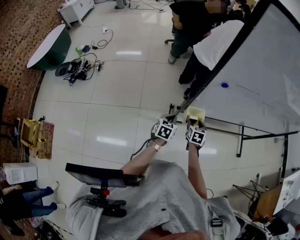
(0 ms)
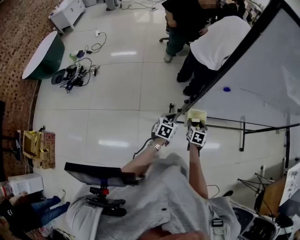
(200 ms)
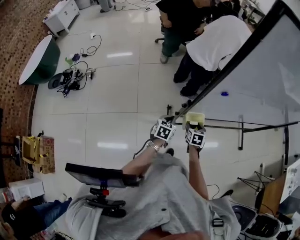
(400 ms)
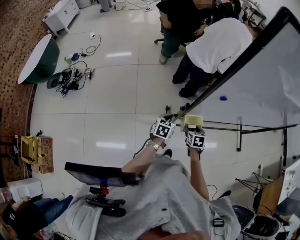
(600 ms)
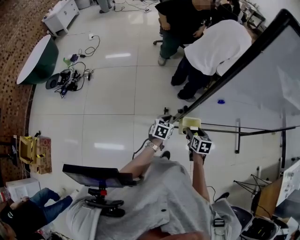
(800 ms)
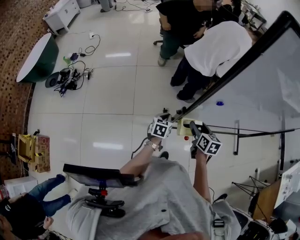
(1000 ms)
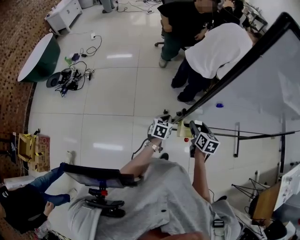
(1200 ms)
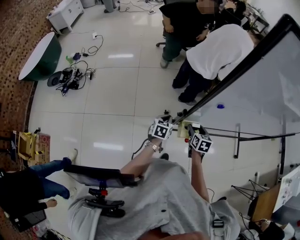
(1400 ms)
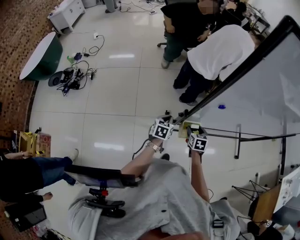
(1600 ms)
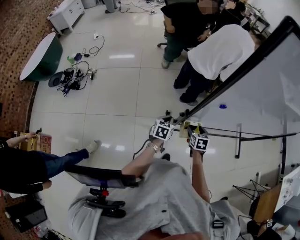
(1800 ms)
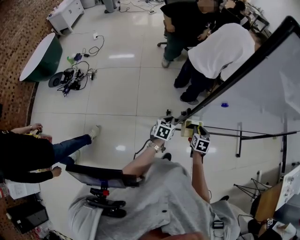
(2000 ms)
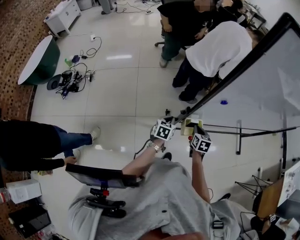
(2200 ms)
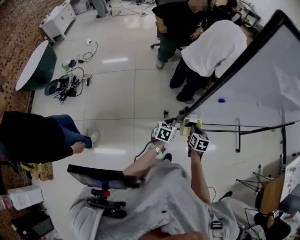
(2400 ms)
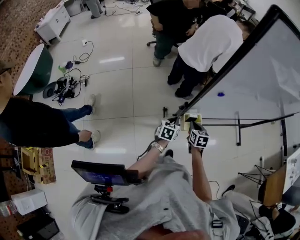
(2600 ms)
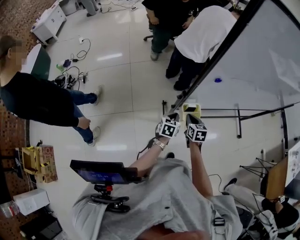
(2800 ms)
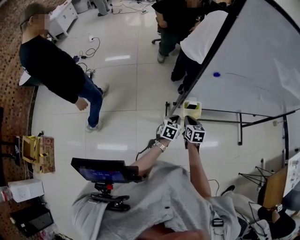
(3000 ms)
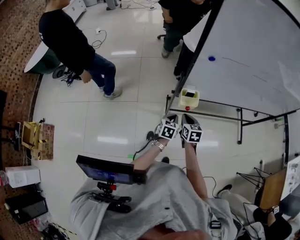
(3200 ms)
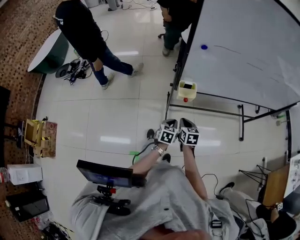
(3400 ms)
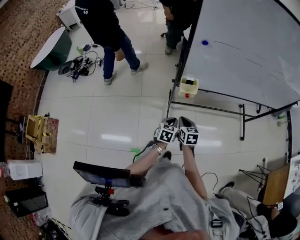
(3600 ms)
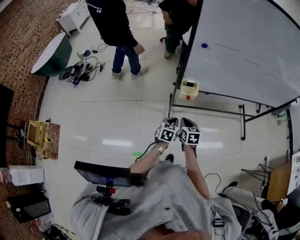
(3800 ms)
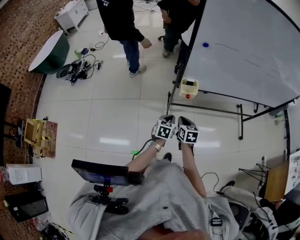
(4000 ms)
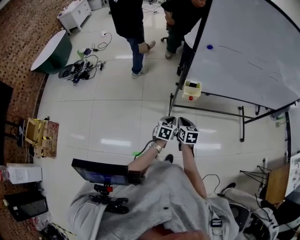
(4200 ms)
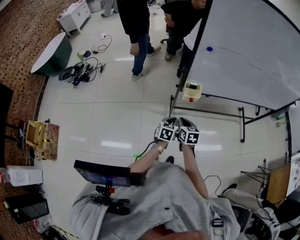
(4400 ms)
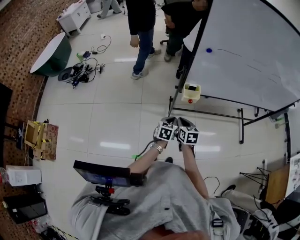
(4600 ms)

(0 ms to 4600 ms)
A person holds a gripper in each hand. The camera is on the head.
0 ms - 1600 ms: The two grippers go some 10 cm forward. The right gripper goes upward and returns, roughly 15 cm each way.
1600 ms - 3000 ms: The left gripper shifts roughly 15 cm backward and to the right. The right gripper is displaced backward by approximately 10 cm, and closes its fingers.
3000 ms - 4600 ms: Both grippers travel together backward, about 15 cm.

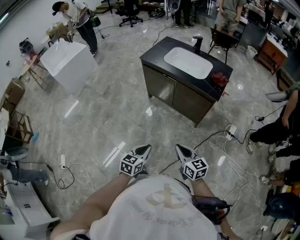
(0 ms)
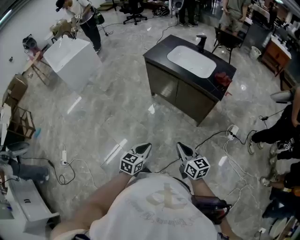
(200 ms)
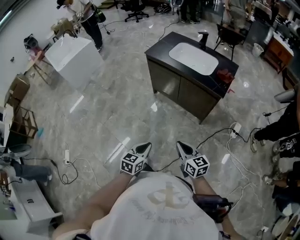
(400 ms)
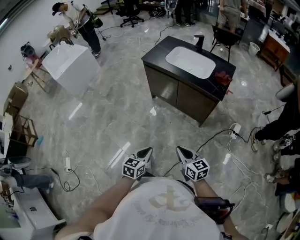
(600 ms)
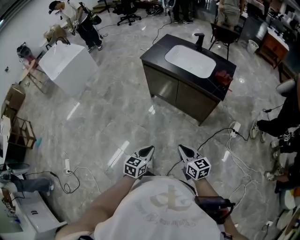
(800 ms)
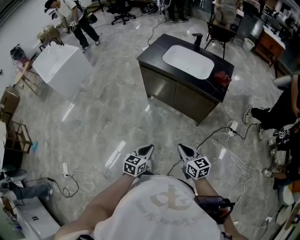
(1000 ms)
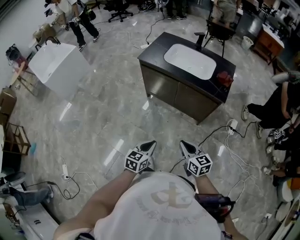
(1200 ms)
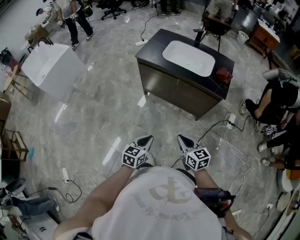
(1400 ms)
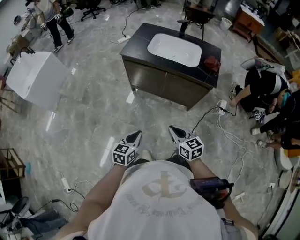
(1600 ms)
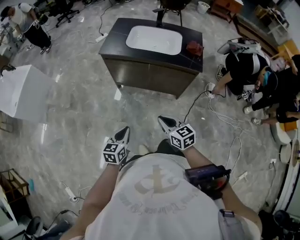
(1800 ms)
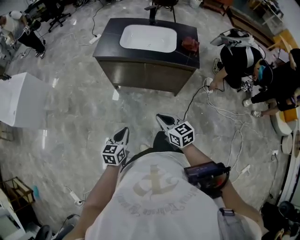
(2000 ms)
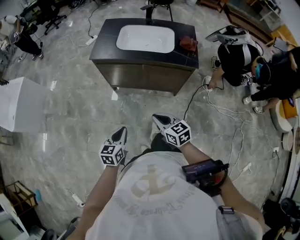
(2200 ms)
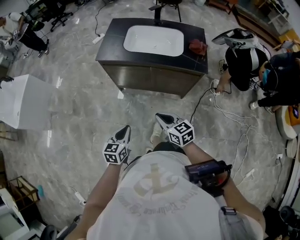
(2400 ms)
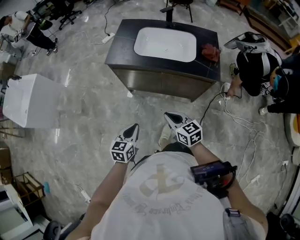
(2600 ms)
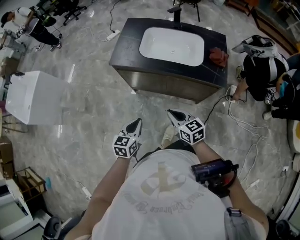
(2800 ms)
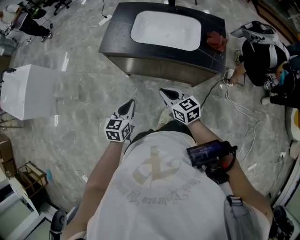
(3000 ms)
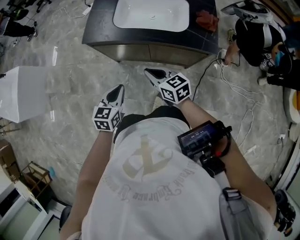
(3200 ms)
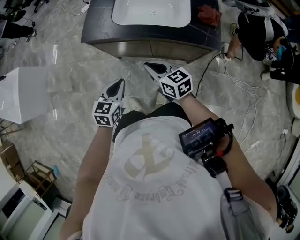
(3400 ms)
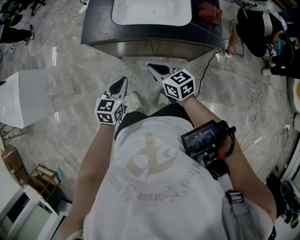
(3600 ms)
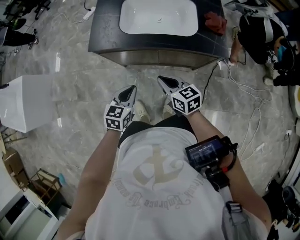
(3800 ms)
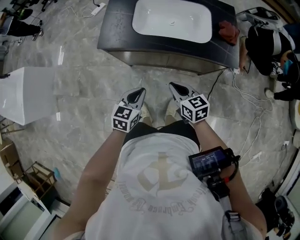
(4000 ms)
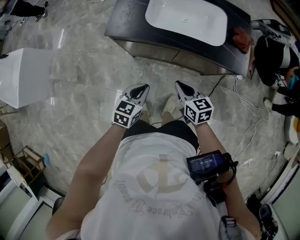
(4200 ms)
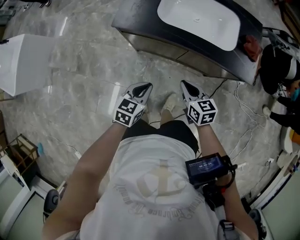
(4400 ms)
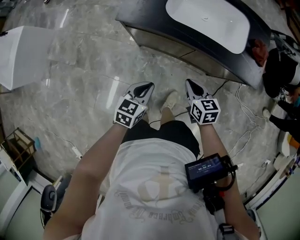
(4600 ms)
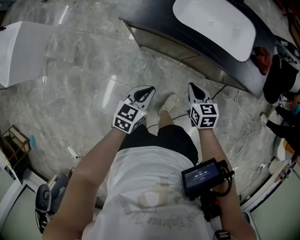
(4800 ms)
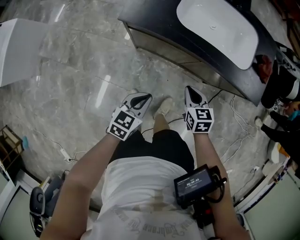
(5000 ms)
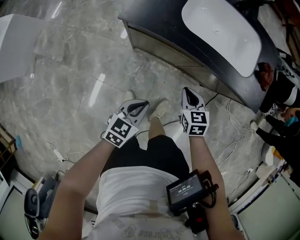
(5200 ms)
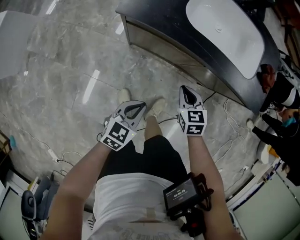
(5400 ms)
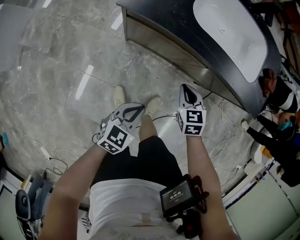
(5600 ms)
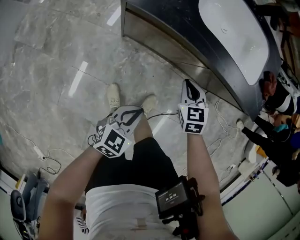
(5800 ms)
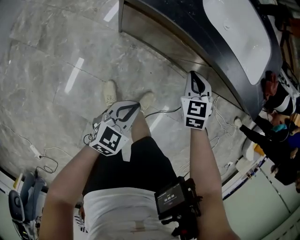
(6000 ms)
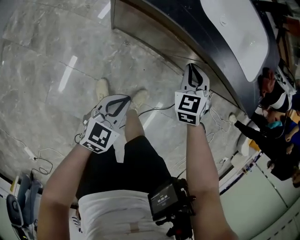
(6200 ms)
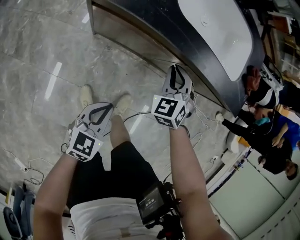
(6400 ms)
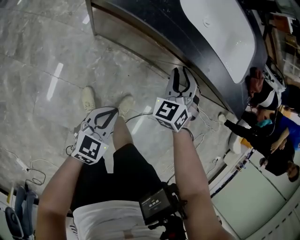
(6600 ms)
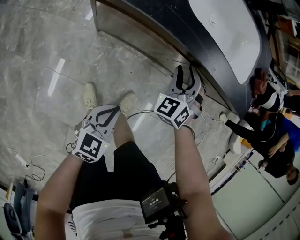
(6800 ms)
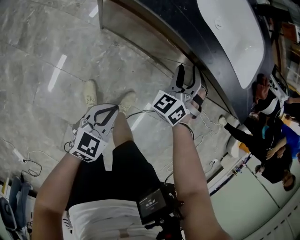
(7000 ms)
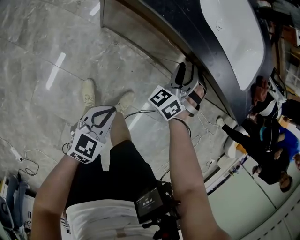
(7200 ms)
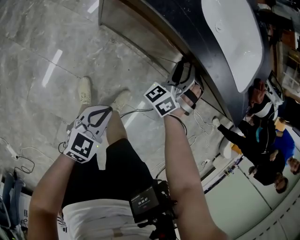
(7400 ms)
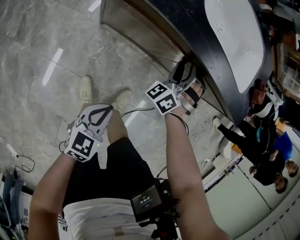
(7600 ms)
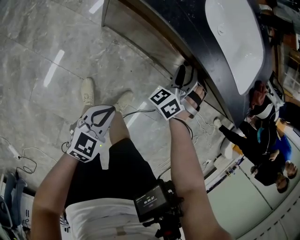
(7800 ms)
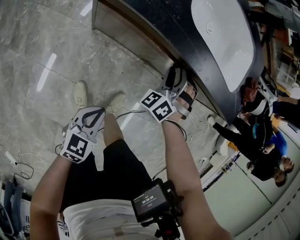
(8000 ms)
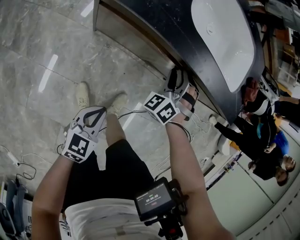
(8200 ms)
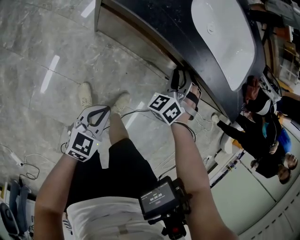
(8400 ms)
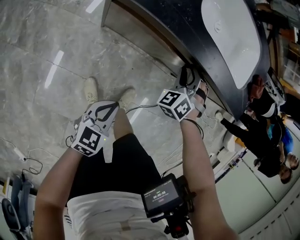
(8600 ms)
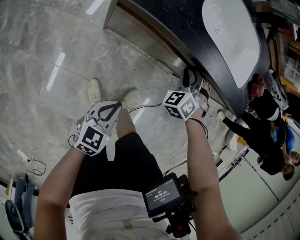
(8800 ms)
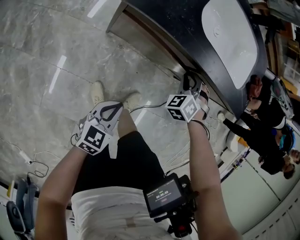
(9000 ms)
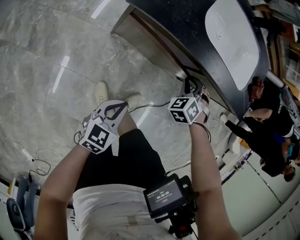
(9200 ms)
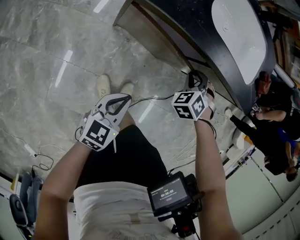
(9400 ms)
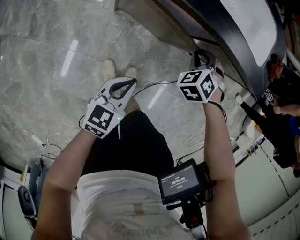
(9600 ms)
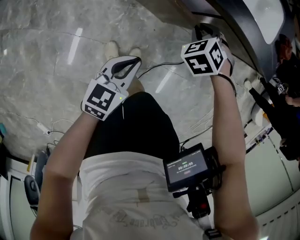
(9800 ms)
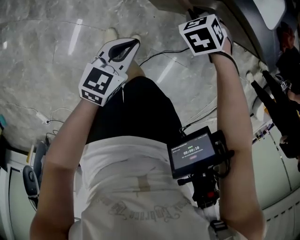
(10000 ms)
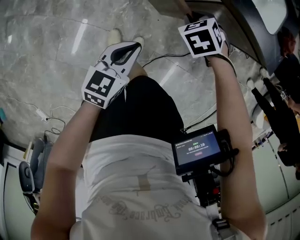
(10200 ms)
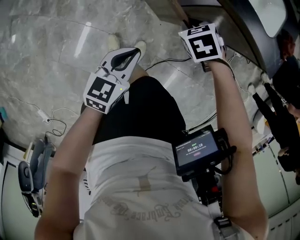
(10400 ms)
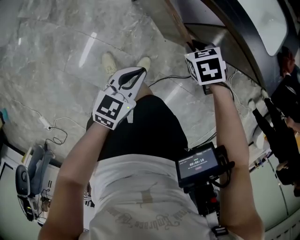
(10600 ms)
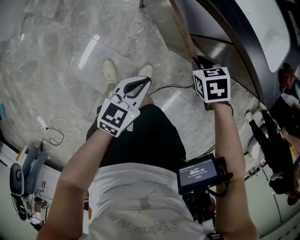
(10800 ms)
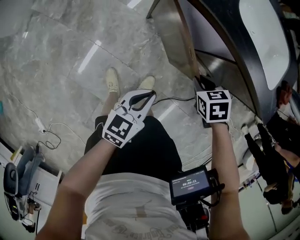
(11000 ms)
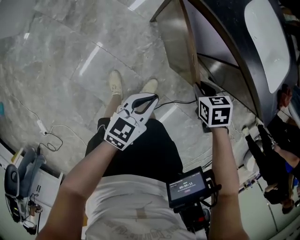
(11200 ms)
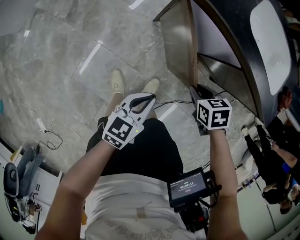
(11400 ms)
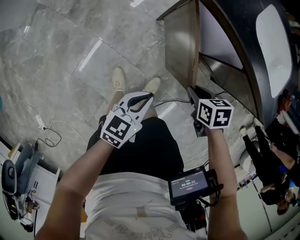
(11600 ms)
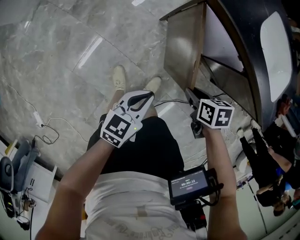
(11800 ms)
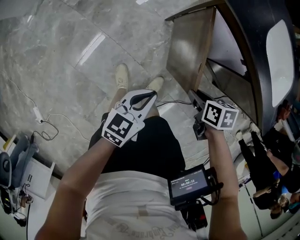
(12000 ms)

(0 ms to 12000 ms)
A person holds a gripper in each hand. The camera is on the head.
0 ms - 1600 ms: The two grippers go roughly 20 cm forward and to the left.
1600 ms - 3000 ms: The two grippers go approximately 25 cm forward.
3000 ms - 4400 ms: The grippers both shift downward and forward by about 10 cm.
4400 ms - 6000 ms: The left gripper travels downward by about 15 cm, while the right gripper moves downward and forward, roughly 20 cm, and changes its angle by approximately 40 degrees.
6000 ms - 7600 ms: The right gripper travels forward by roughly 5 cm, changes its angle by roughly 50 degrees, and opens up.
7600 ms - 9000 ms: The right gripper changes its angle by approximately 30 degrees, and closes, while the left gripper travels to the left by approximately 5 cm.
9000 ms - 10400 ms: The left gripper ends up about 10 cm from where it was; the right gripper ends up approximately 10 cm from where it was, and swivels approximately 40 degrees.
10400 ms - 12000 ms: The left gripper shifts by approximately 10 cm. The right gripper changes place by some 15 cm, and rotates roughly 40 degrees.

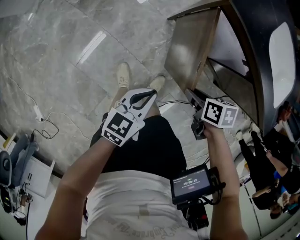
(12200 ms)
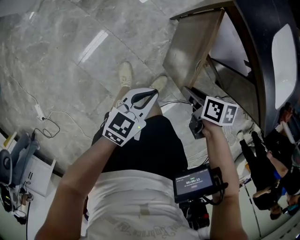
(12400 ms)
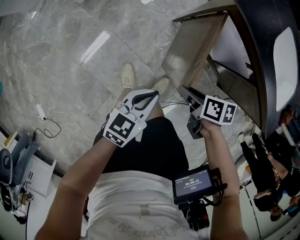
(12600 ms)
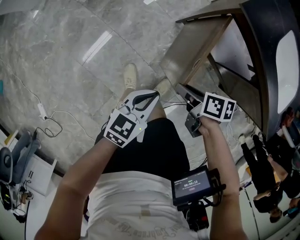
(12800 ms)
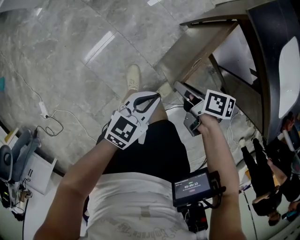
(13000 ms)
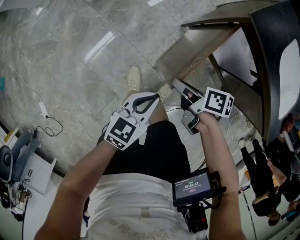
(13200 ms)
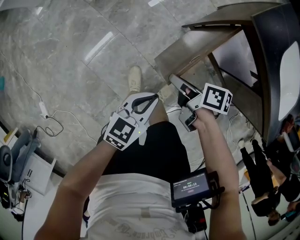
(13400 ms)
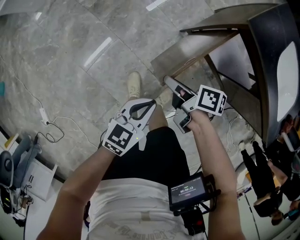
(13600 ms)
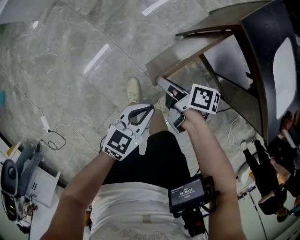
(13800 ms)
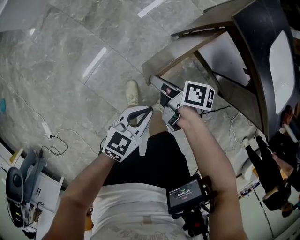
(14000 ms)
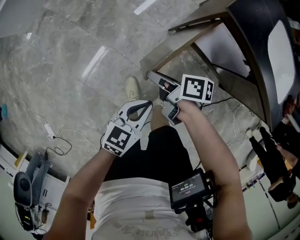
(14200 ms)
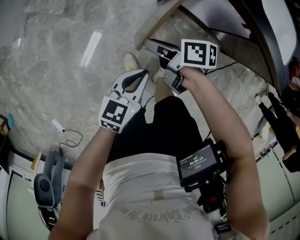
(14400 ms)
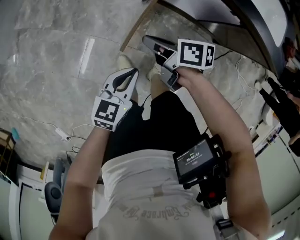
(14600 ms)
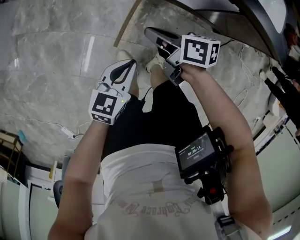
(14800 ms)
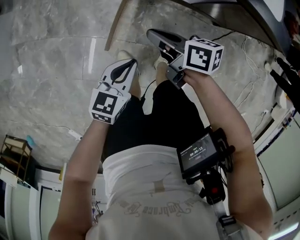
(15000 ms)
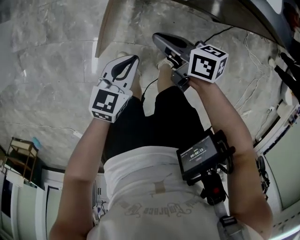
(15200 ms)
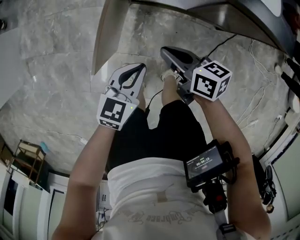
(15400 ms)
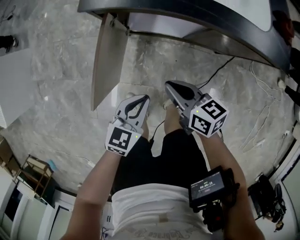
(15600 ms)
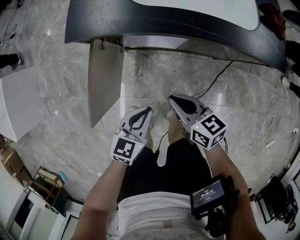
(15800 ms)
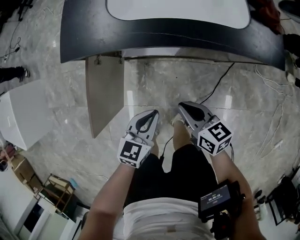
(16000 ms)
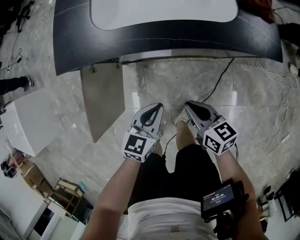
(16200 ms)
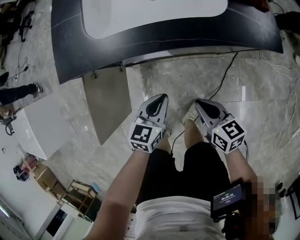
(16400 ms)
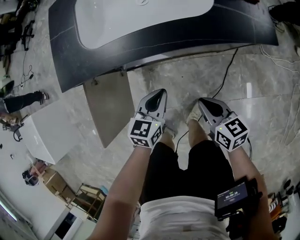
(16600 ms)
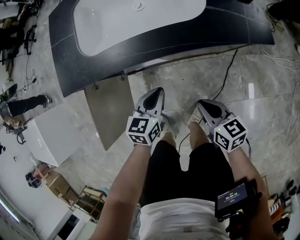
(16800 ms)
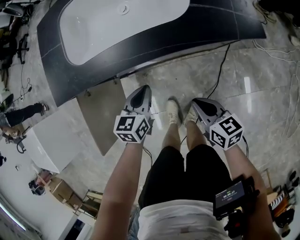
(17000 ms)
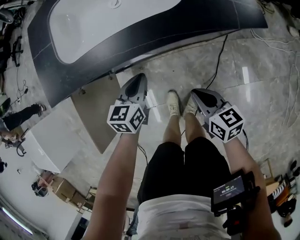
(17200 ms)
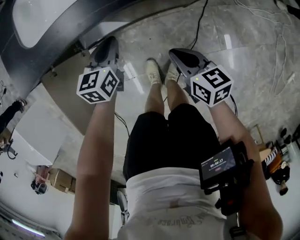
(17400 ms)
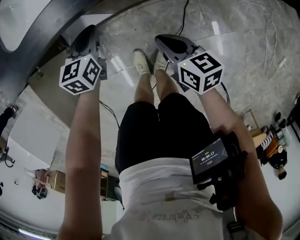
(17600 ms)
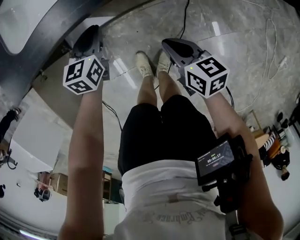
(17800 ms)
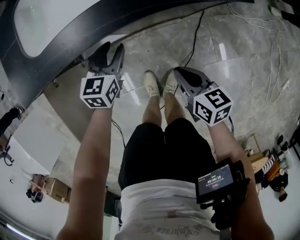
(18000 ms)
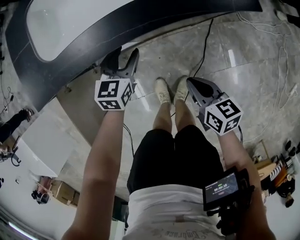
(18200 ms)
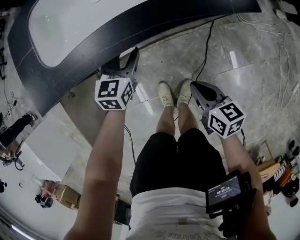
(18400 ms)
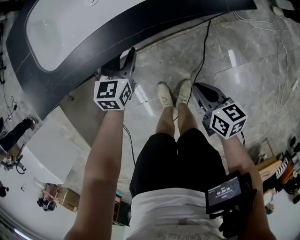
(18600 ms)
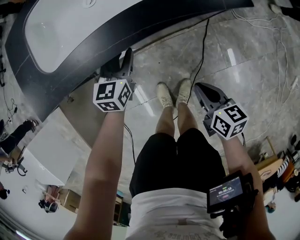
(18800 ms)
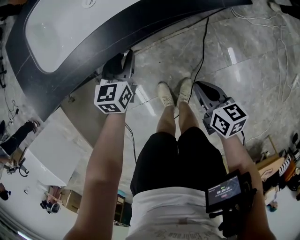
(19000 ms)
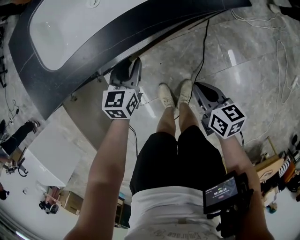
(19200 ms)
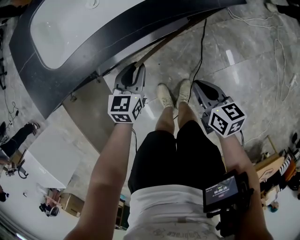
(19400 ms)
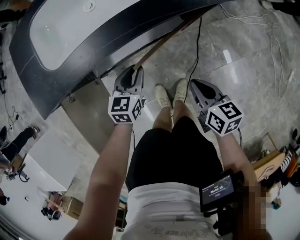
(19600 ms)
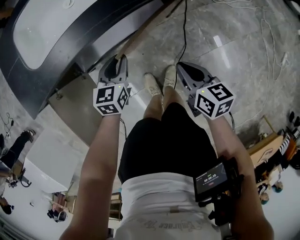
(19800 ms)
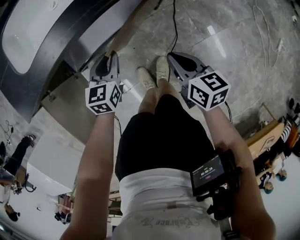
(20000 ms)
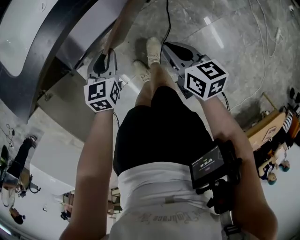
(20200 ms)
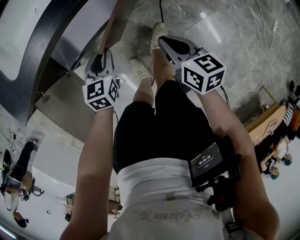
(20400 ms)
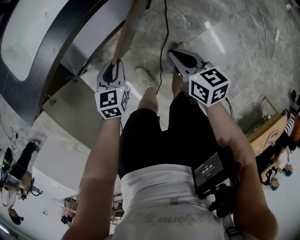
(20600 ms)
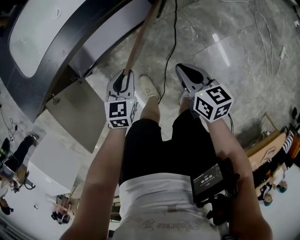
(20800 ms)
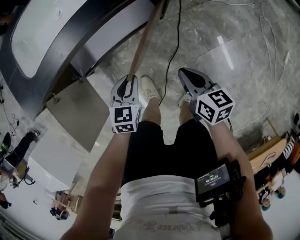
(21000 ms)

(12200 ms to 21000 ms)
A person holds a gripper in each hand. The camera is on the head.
12200 ms - 13600 ms: The left gripper shifts some 10 cm to the left; the right gripper heads to the left and forward, covering roughly 20 cm, and swivels some 30 degrees.
13600 ms - 15200 ms: The right gripper moves roughly 15 cm, turns by roughly 30 degrees, and closes its fingers. The left gripper ends up approximately 10 cm from where it was, and rotates about 20 degrees.
15200 ms - 16600 ms: The left gripper is displaced to the right and forward by approximately 35 cm, while the right gripper is displaced to the right by roughly 35 cm, and turns by some 30 degrees.
16600 ms - 18000 ms: The right gripper ends up some 5 cm from where it was; the left gripper shifts about 10 cm forward, and opens up.
18000 ms - 19600 ms: The right gripper ends up some 5 cm from where it was, while the left gripper changes place by approximately 5 cm.
19600 ms - 21000 ms: The left gripper is displaced backward and to the right by about 15 cm. The right gripper travels to the right by roughly 10 cm.
